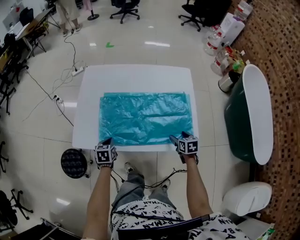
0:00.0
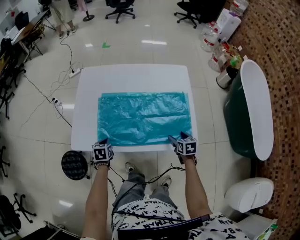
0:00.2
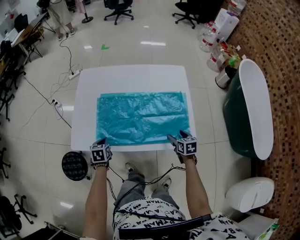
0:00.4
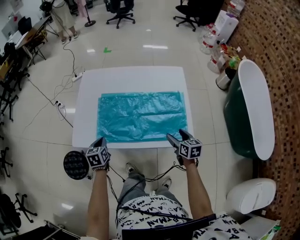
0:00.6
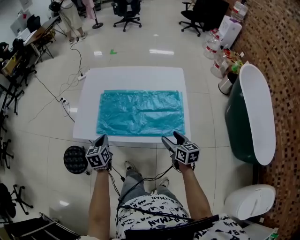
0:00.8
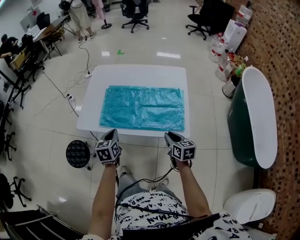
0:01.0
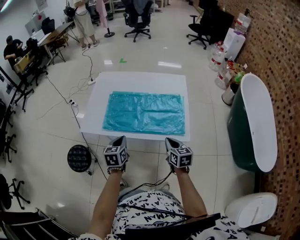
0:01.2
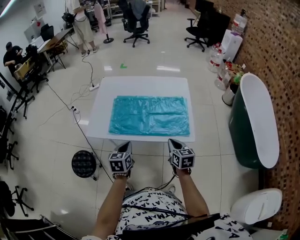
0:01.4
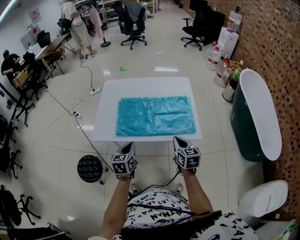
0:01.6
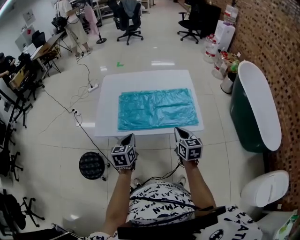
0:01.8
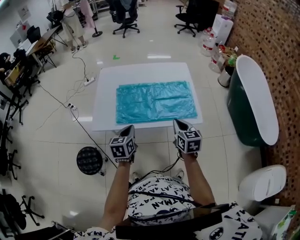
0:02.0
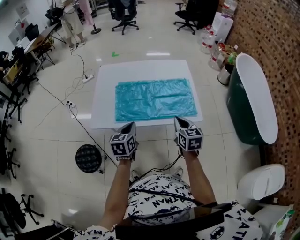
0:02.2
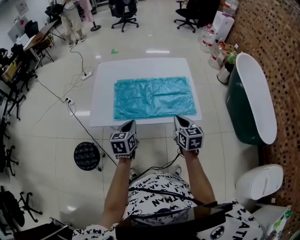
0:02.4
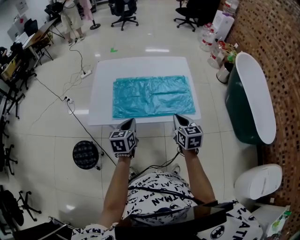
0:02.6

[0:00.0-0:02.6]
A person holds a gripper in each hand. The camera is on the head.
0:00.0 to 0:01.2: The left gripper travels upward, backward and to the right by some 20 cm. The right gripper moves upward, backward and to the left, roughly 20 cm, rotates some 20 degrees, and closes up.
0:01.2 to 0:02.6: The right gripper moves upward and to the left, roughly 10 cm.

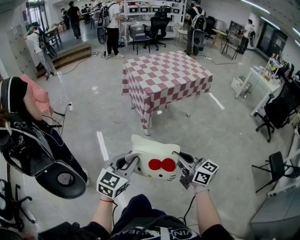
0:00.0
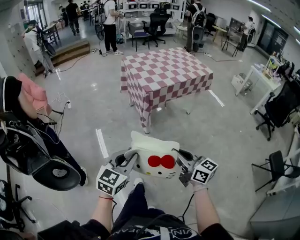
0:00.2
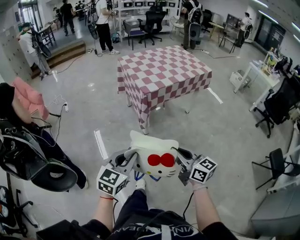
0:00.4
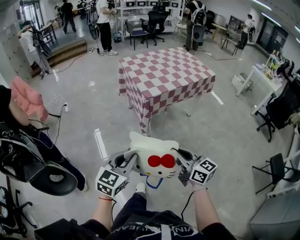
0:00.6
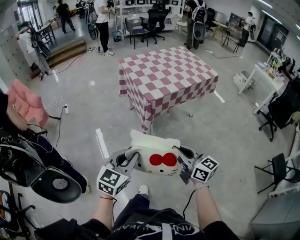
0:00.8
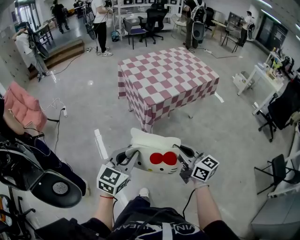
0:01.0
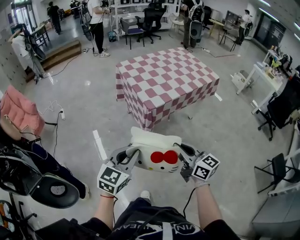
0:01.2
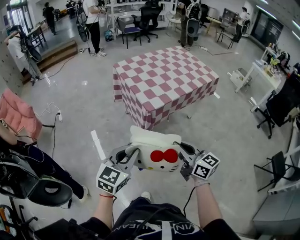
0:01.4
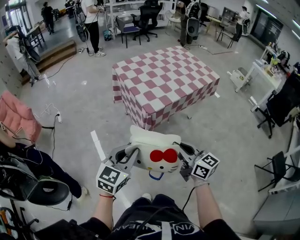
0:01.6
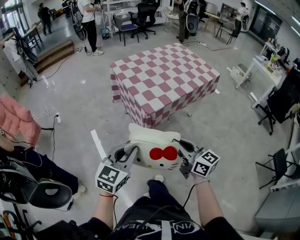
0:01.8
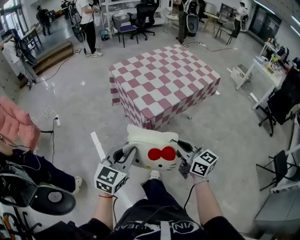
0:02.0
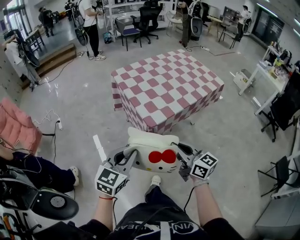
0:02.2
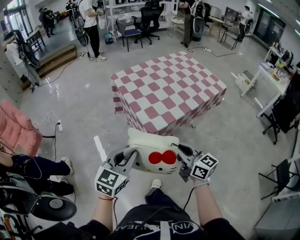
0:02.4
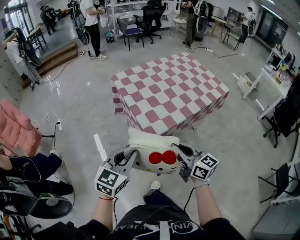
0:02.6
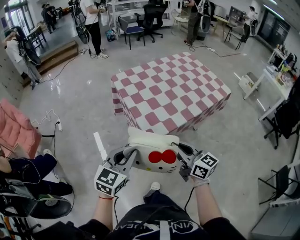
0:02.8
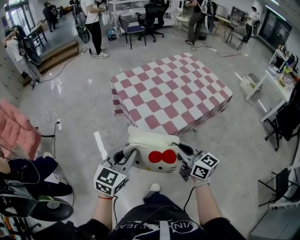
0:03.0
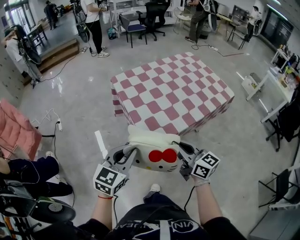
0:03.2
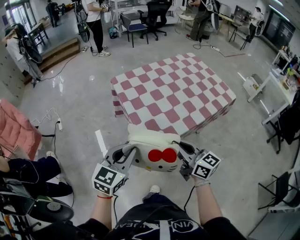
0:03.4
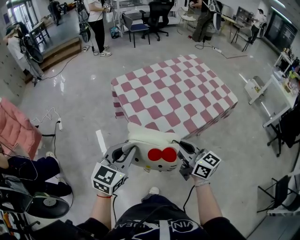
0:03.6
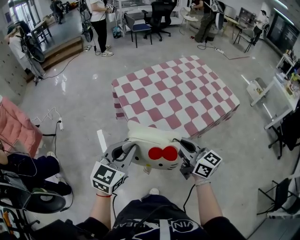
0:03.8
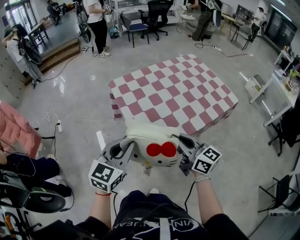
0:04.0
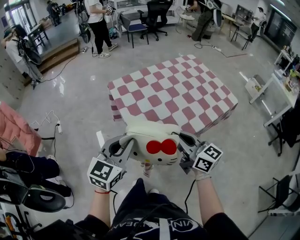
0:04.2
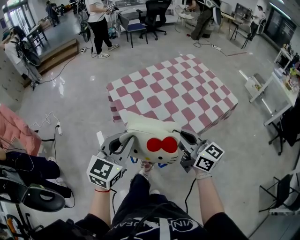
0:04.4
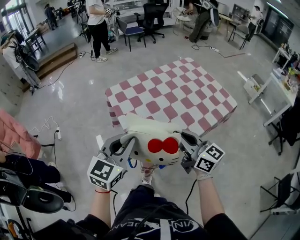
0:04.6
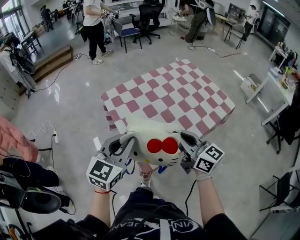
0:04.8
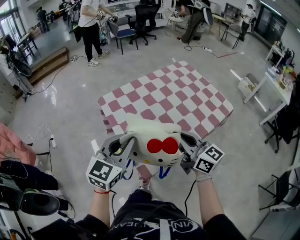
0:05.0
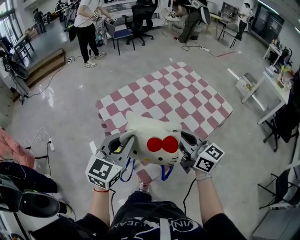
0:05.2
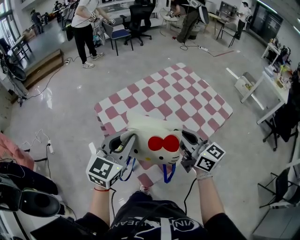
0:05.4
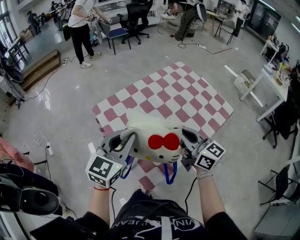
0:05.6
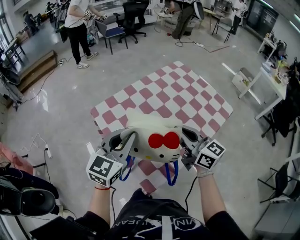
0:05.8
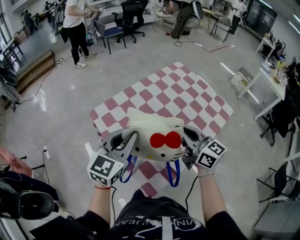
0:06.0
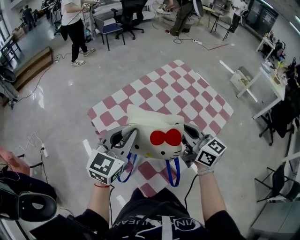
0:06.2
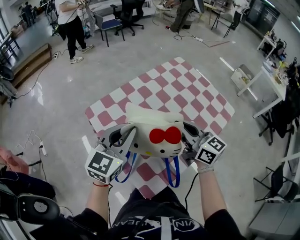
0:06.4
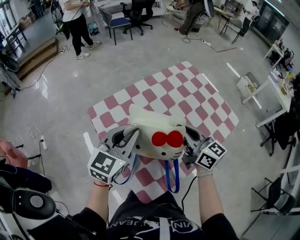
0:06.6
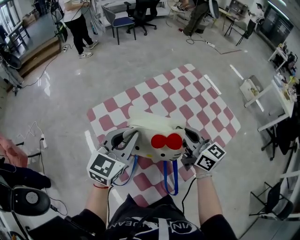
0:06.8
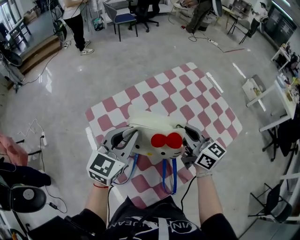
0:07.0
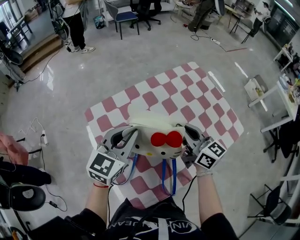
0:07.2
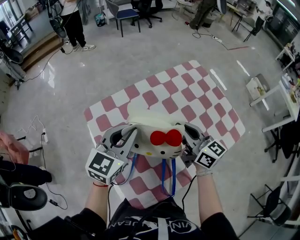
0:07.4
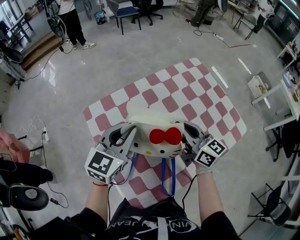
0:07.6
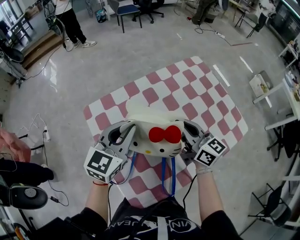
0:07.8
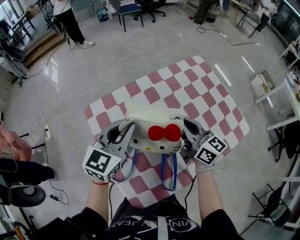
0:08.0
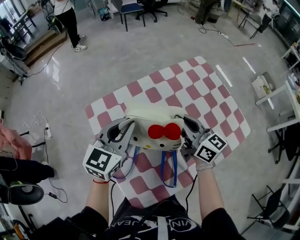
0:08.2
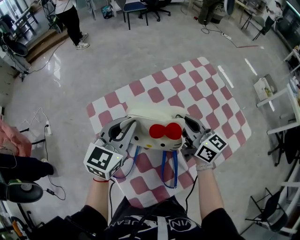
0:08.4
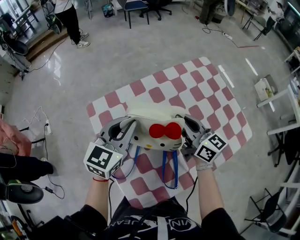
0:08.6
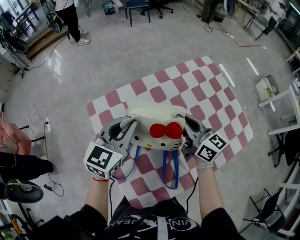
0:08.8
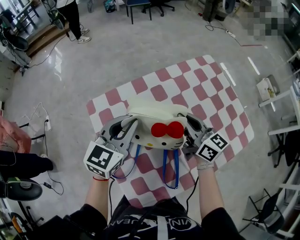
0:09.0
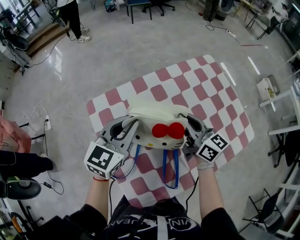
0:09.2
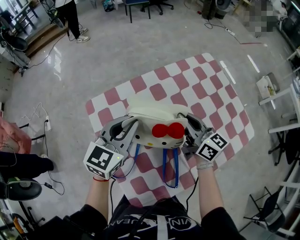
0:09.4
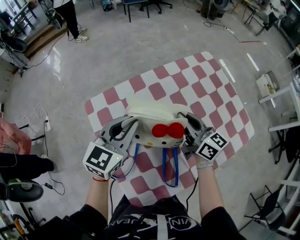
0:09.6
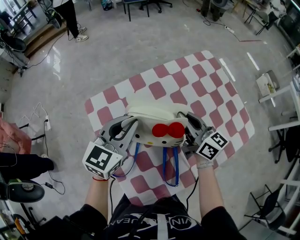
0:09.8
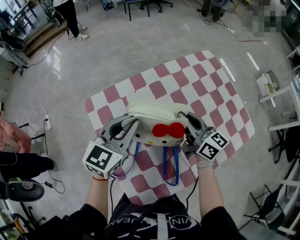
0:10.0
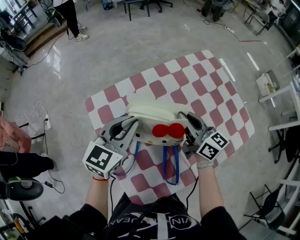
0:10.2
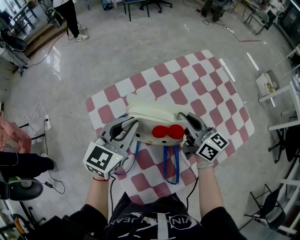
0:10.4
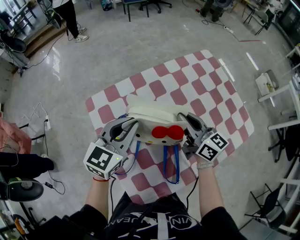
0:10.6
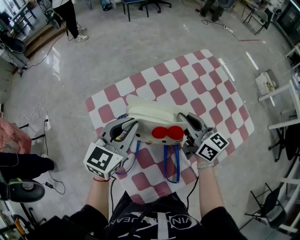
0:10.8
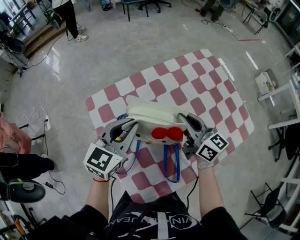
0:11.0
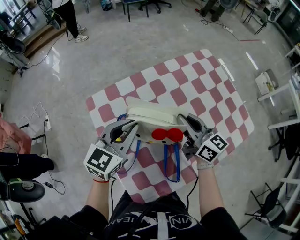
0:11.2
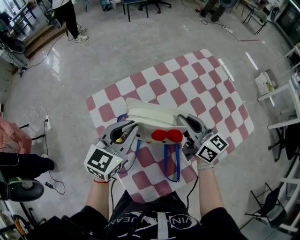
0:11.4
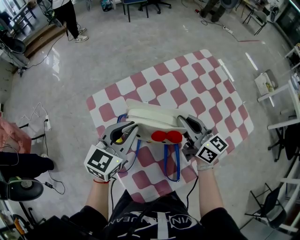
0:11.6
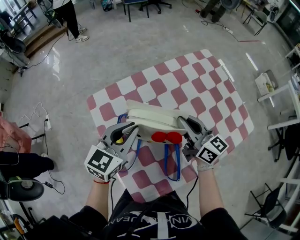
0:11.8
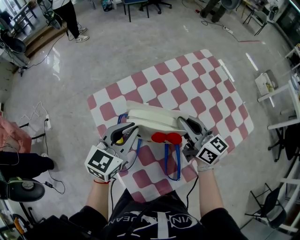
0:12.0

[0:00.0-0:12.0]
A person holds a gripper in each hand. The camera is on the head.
0:00.0 to 0:01.6: Both grippers move forward, some 30 cm.
0:01.6 to 0:03.0: The grippers both shift forward by about 20 cm.
0:03.0 to 0:04.4: Both grippers move forward, approximately 15 cm.
0:04.4 to 0:06.0: The two grippers go some 20 cm forward.
0:06.0 to 0:07.6: The grippers both shift forward and downward by some 15 cm.
0:07.6 to 0:09.0: The right gripper moves forward, about 5 cm.
0:09.0 to 0:12.0: There are only small adjustments of the grippers.

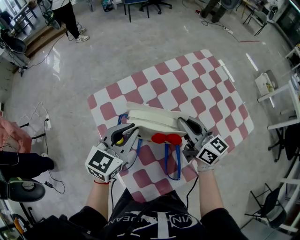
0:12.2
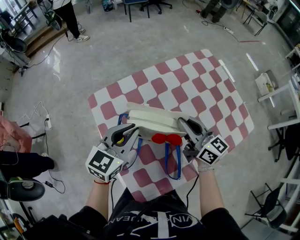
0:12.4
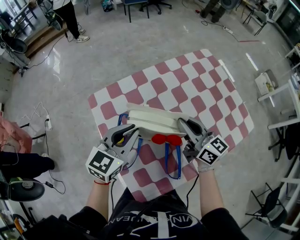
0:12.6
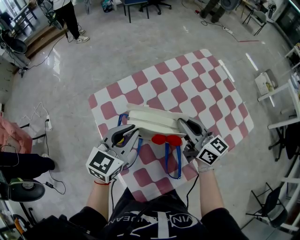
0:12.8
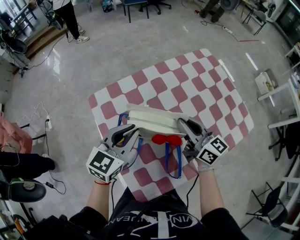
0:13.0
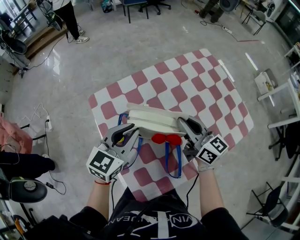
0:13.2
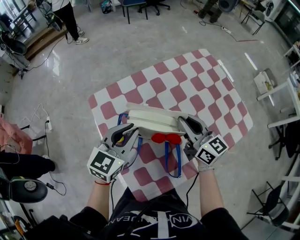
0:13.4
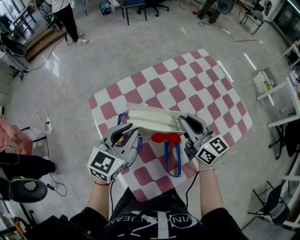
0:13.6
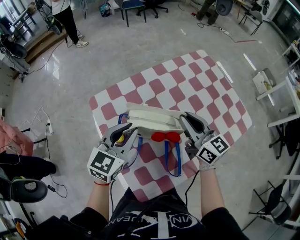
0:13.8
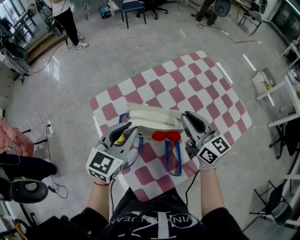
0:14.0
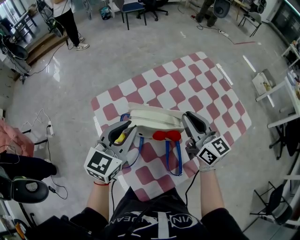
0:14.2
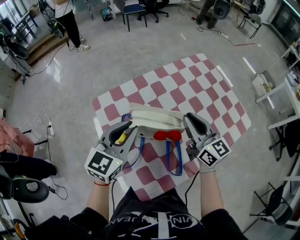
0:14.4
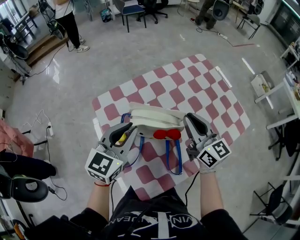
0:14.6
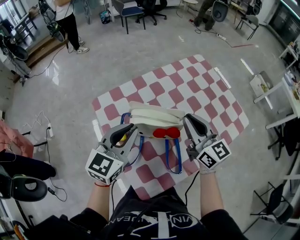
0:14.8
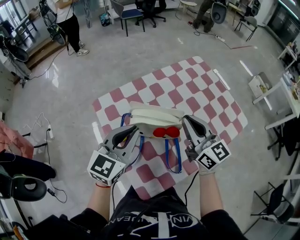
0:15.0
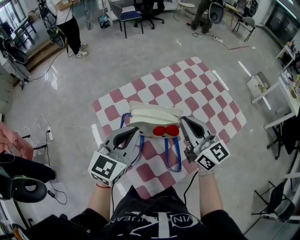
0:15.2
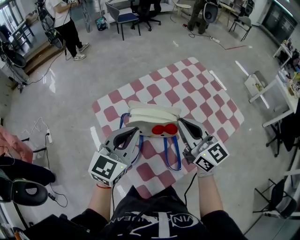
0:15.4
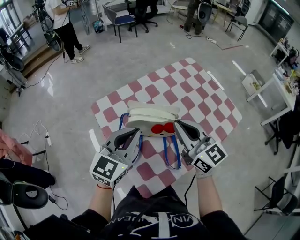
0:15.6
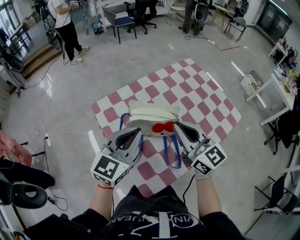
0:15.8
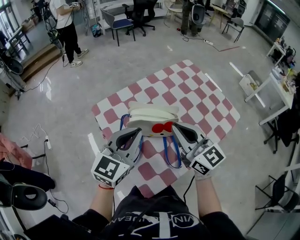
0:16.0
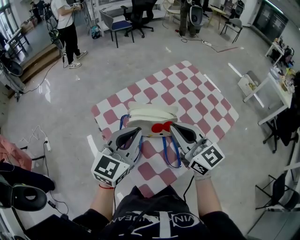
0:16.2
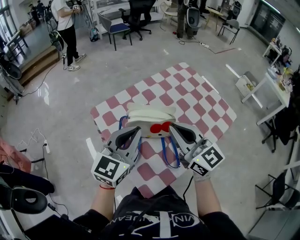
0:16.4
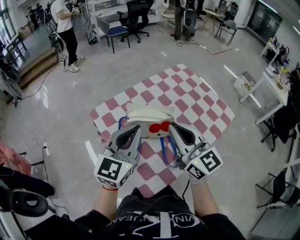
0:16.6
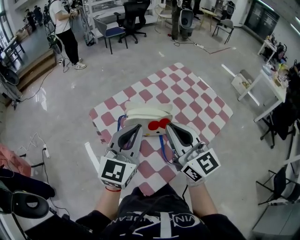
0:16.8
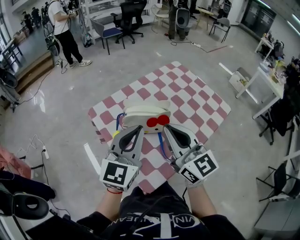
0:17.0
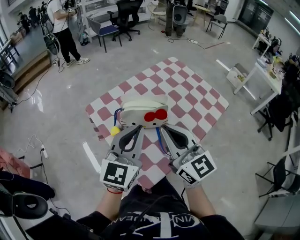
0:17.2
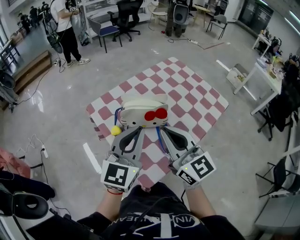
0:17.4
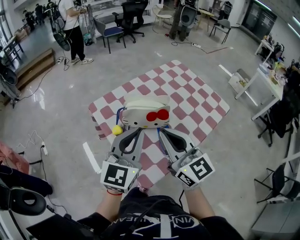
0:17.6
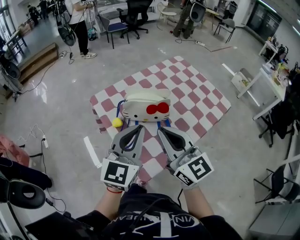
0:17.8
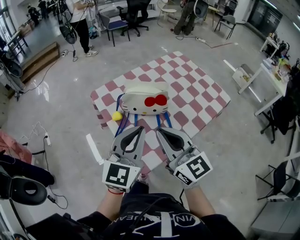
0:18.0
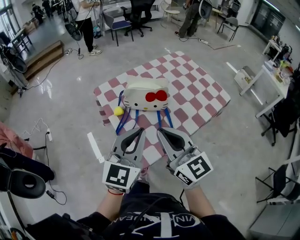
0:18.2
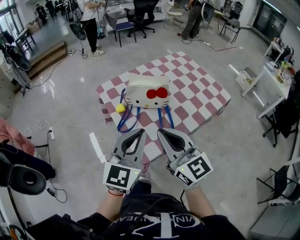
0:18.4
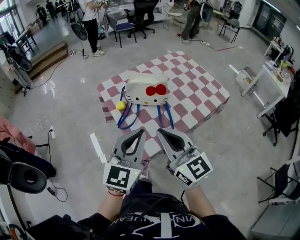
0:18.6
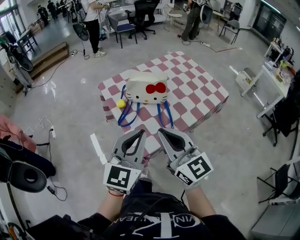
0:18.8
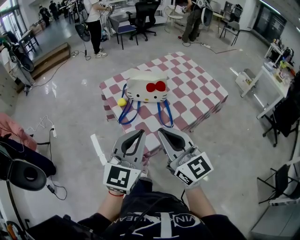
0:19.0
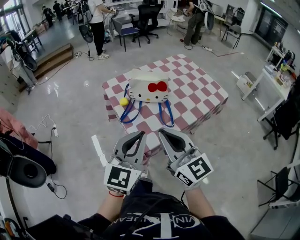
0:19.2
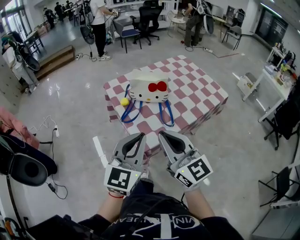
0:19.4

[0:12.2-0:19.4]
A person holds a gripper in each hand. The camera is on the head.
0:12.2 to 0:13.6: The grippers make only small movements.
0:13.6 to 0:15.0: Both grippers move upward, some 5 cm.
0:15.0 to 0:16.6: The left gripper is displaced upward by some 5 cm. Meanwhile the right gripper heads backward, upward and to the left, covering some 15 cm.
0:16.6 to 0:18.0: Both grippers move backward, approximately 15 cm.
0:18.0 to 0:19.4: Both grippers travel together backward, about 15 cm.

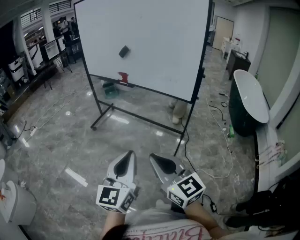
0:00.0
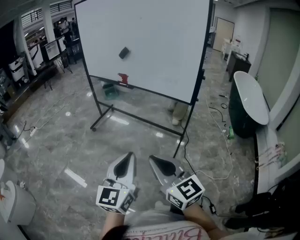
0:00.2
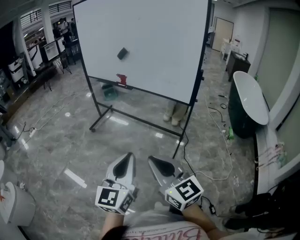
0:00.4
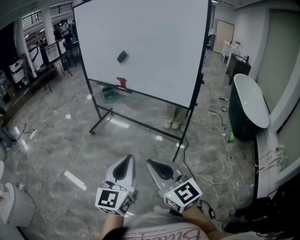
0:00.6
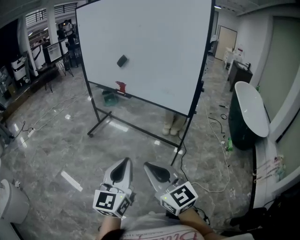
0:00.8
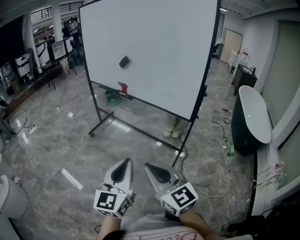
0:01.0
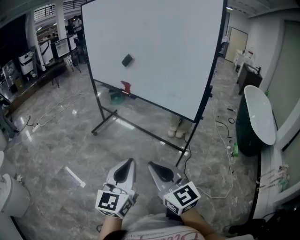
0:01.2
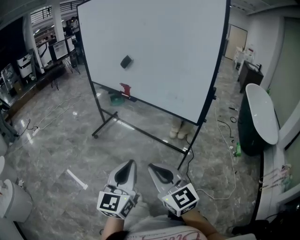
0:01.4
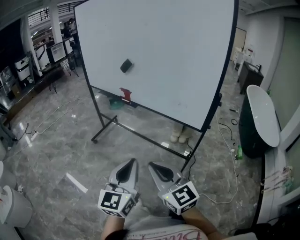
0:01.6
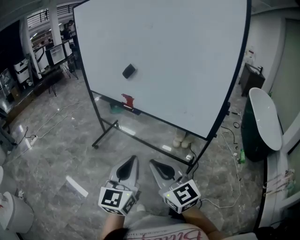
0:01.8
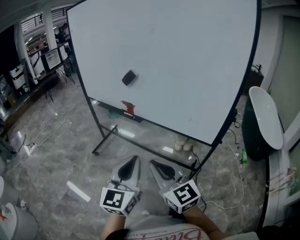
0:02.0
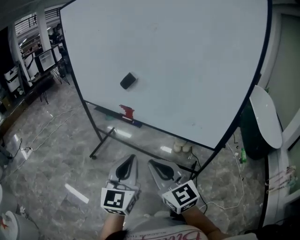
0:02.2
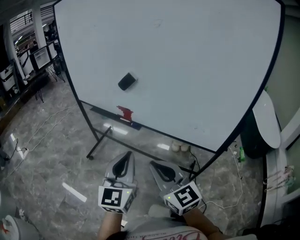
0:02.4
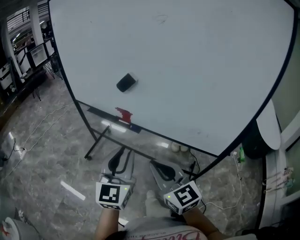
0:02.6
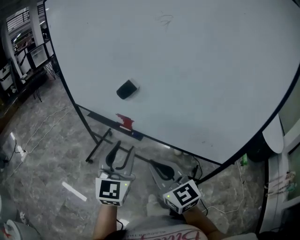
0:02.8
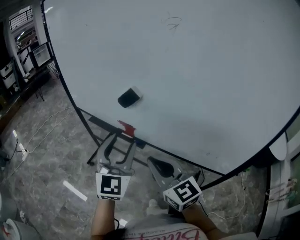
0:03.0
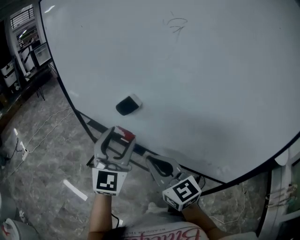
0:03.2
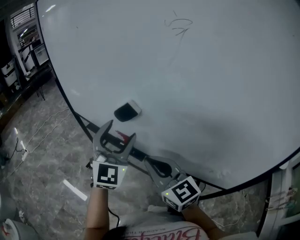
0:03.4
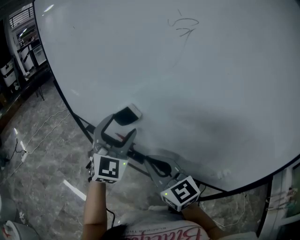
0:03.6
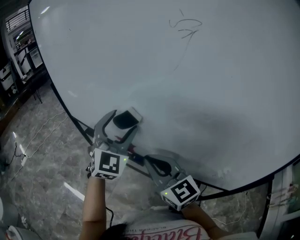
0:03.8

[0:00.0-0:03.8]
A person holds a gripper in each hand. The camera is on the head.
0:00.0 to 0:01.2: The grippers both shift forward and to the right by about 10 cm.
0:01.2 to 0:02.6: The two grippers go some 35 cm forward.
0:02.6 to 0:03.8: The grippers both shift forward by about 20 cm. The left gripper rotates some 30 degrees, and opens its fingers.
